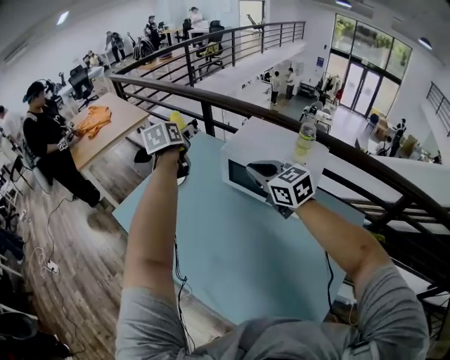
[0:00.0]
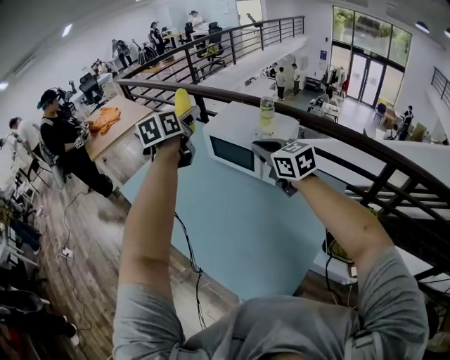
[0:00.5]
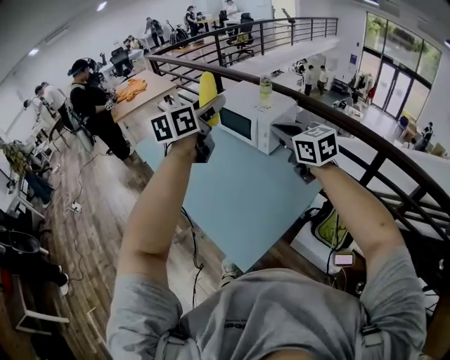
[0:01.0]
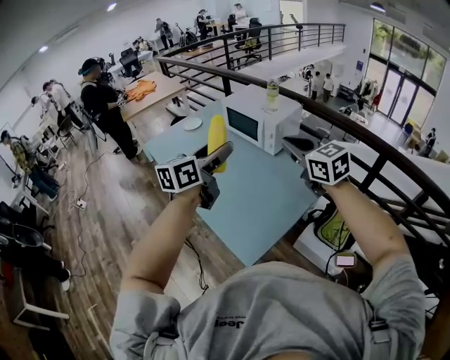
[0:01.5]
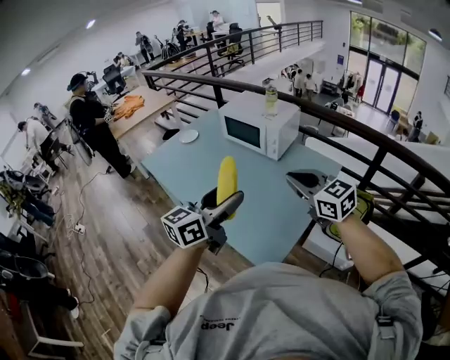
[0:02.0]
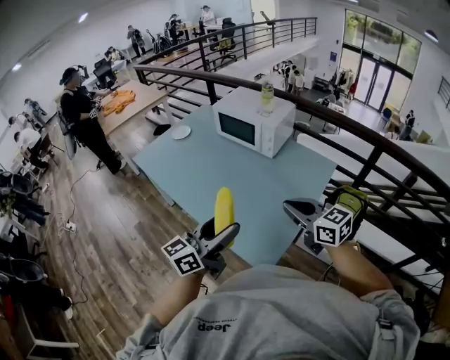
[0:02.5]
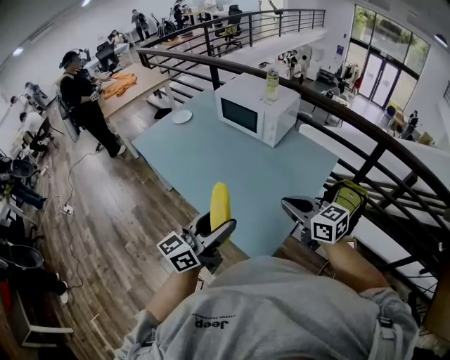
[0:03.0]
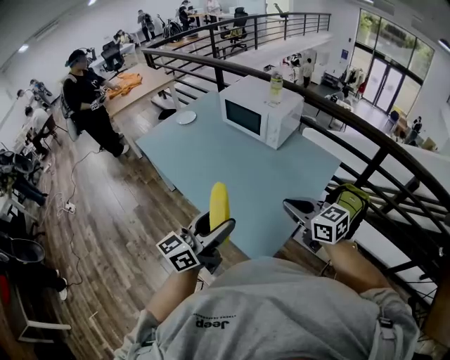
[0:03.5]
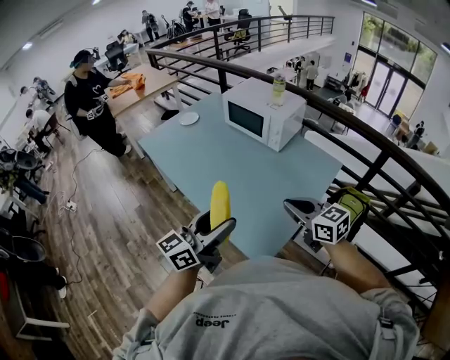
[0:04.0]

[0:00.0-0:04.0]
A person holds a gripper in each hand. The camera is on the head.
0:00.0 to 0:02.0: The pair of grippers is taken backward, about 60 cm. The left gripper rotates roughly 40 degrees.
0:02.0 to 0:04.0: The right gripper travels downward by some 10 cm. The left gripper shifts roughly 10 cm backward and downward.

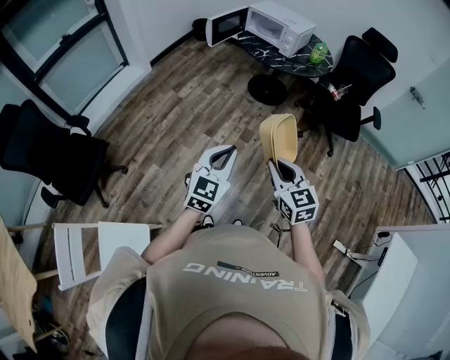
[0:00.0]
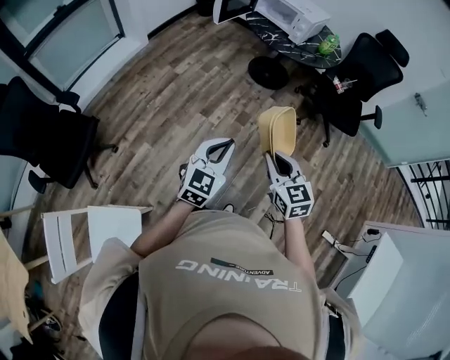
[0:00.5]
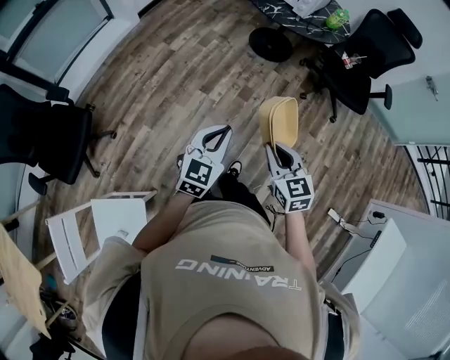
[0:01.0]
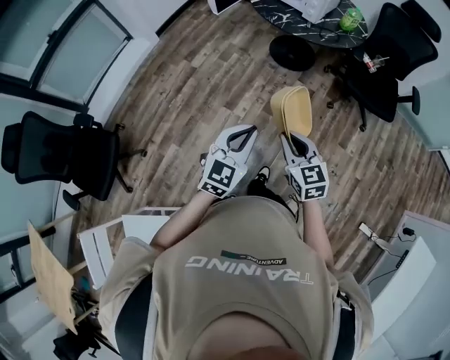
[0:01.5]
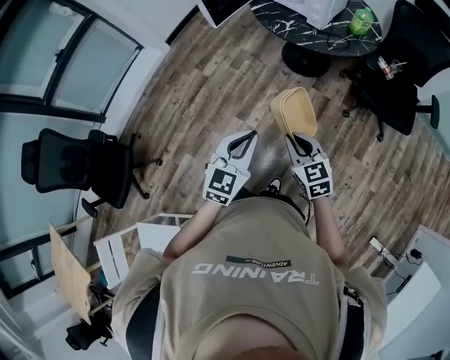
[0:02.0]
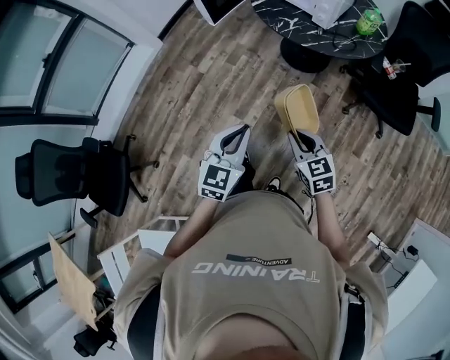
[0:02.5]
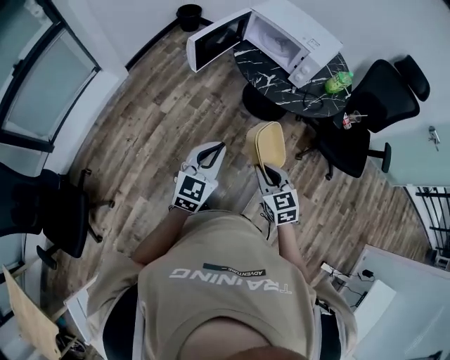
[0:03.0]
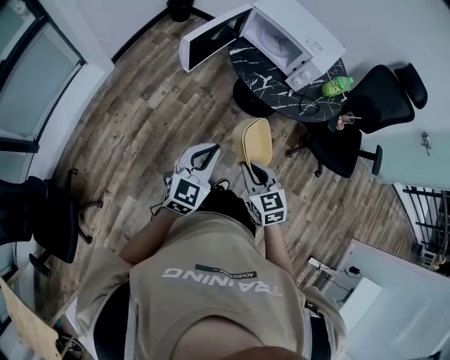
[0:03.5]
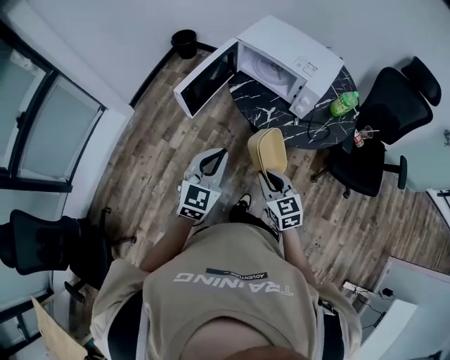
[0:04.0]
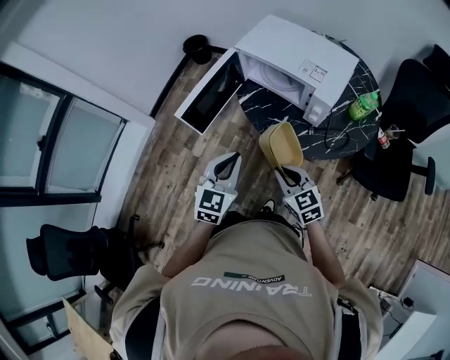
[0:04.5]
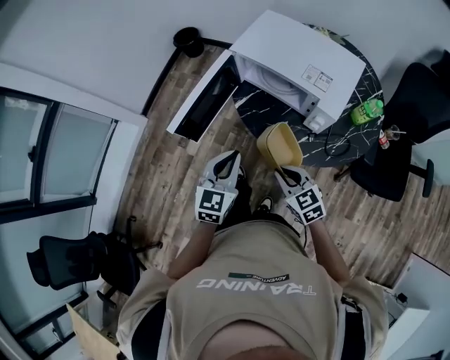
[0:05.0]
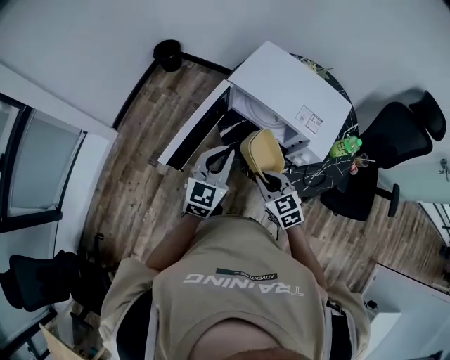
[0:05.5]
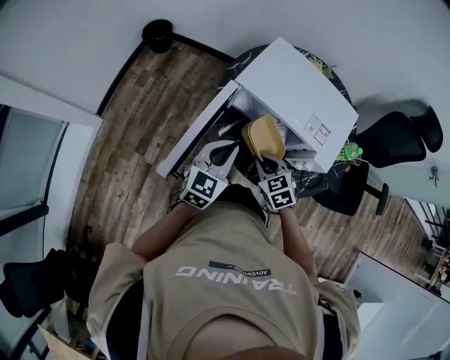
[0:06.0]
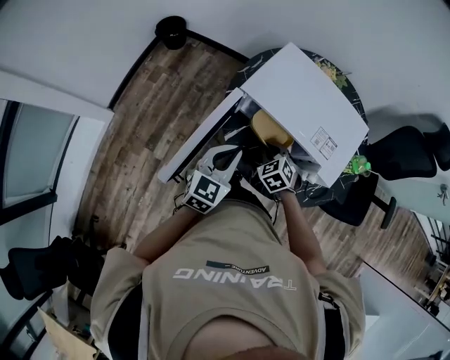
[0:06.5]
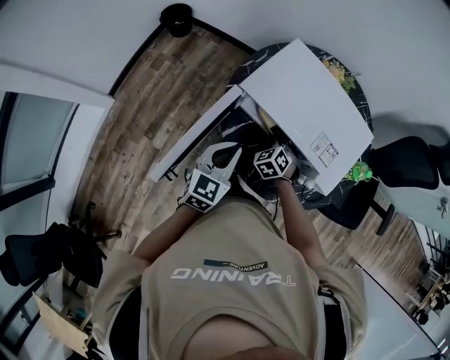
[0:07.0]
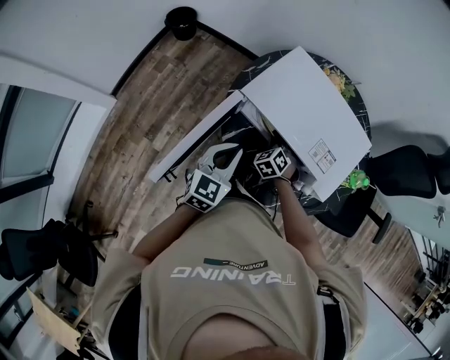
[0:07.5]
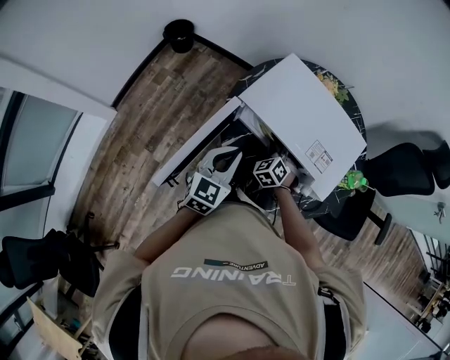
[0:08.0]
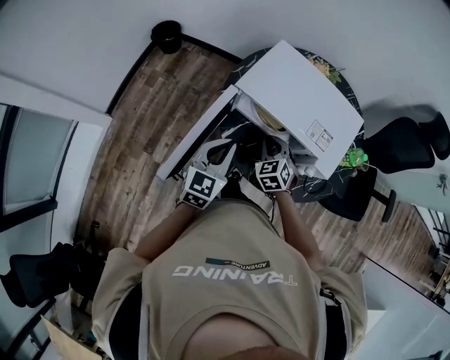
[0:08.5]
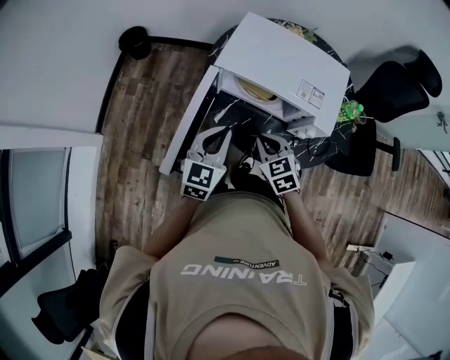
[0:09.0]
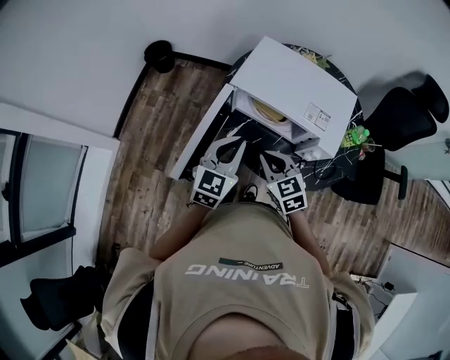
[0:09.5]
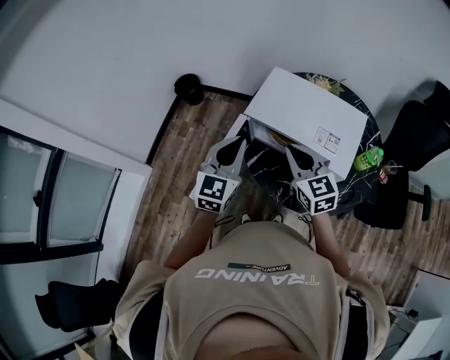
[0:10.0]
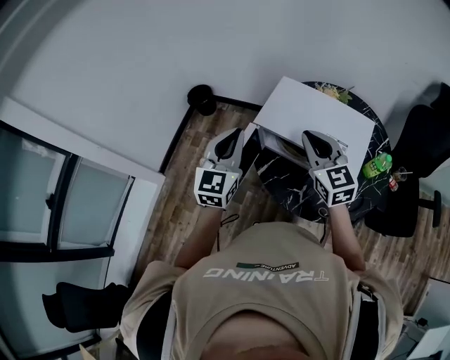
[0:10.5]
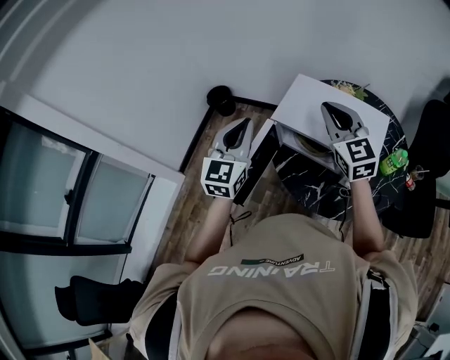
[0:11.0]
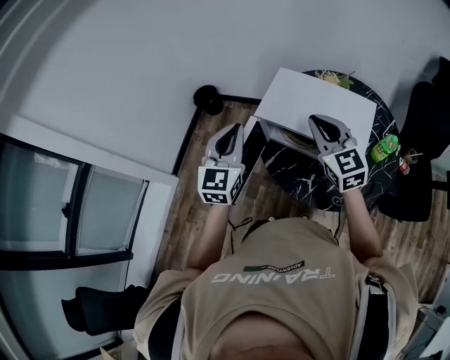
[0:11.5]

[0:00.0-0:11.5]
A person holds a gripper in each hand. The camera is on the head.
0:00.0 to 0:02.0: Both grippers move forward, approximately 30 cm.
0:02.0 to 0:04.0: The grippers both shift forward by about 35 cm.
0:04.0 to 0:06.0: The grippers both shift forward by approximately 35 cm. The right gripper rotates about 20 degrees.
0:06.0 to 0:07.5: The right gripper goes roughly 20 cm forward and downward, and changes its angle by about 30 degrees; the left gripper ends up roughly 5 cm from where it was.
0:07.5 to 0:09.5: The left gripper moves upward, about 5 cm; the right gripper moves upward and backward, about 25 cm, and changes its angle by roughly 40 degrees.
0:09.5 to 0:11.5: The right gripper travels upward, forward and to the right by roughly 20 cm, and rotates some 30 degrees, while the left gripper is displaced upward and forward by approximately 15 cm, and changes its angle by approximately 20 degrees.

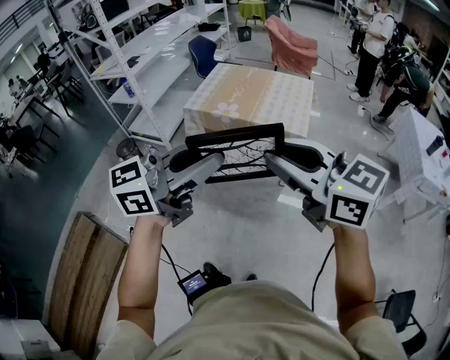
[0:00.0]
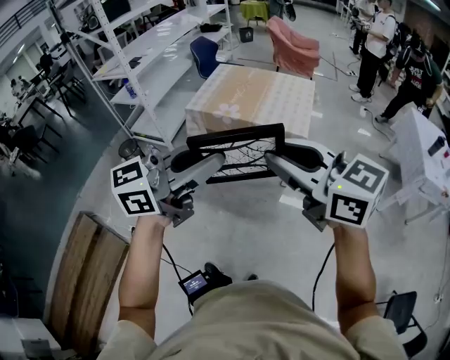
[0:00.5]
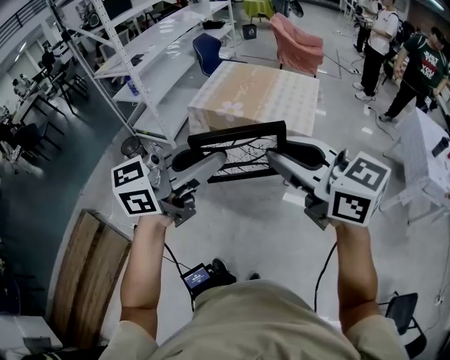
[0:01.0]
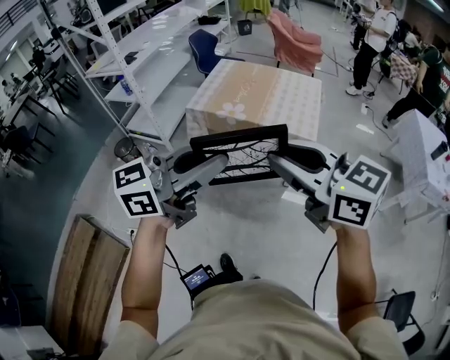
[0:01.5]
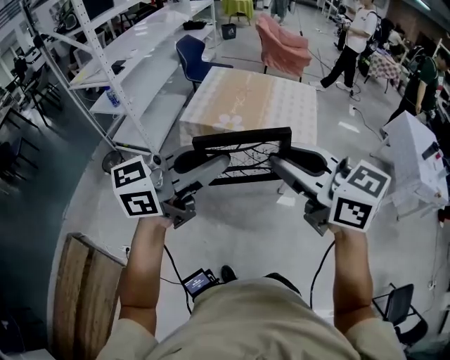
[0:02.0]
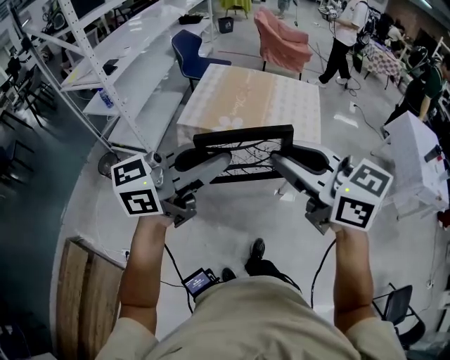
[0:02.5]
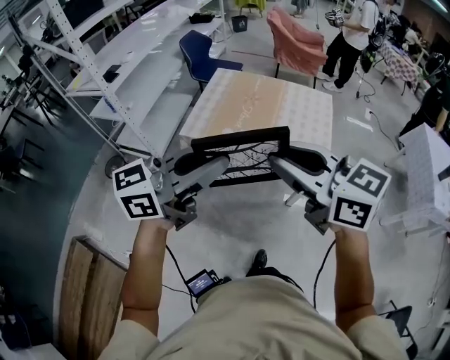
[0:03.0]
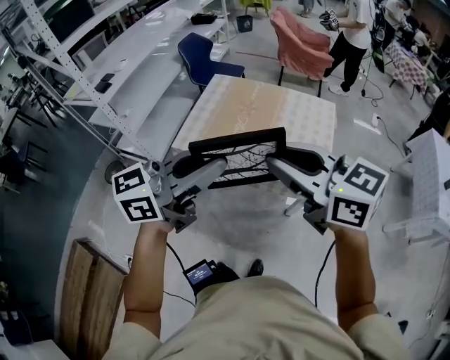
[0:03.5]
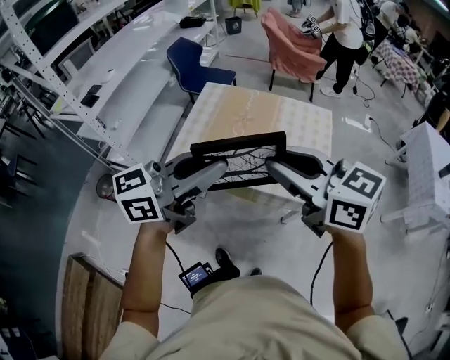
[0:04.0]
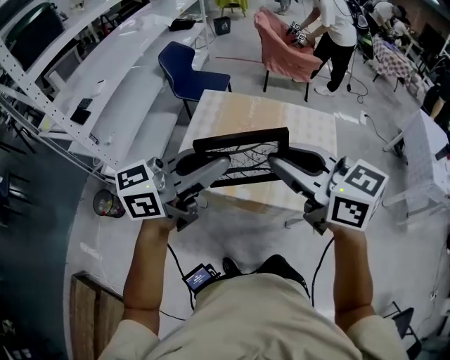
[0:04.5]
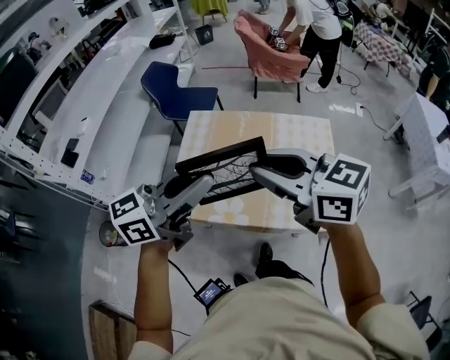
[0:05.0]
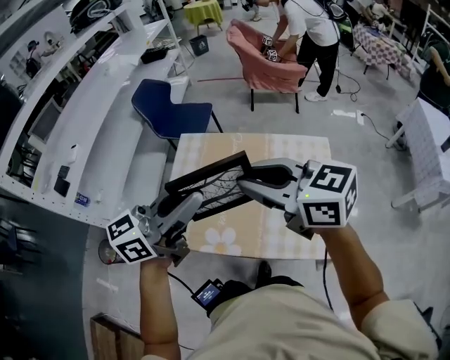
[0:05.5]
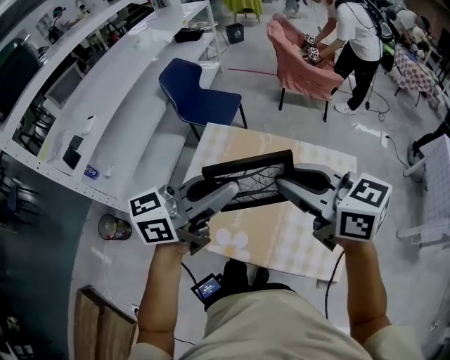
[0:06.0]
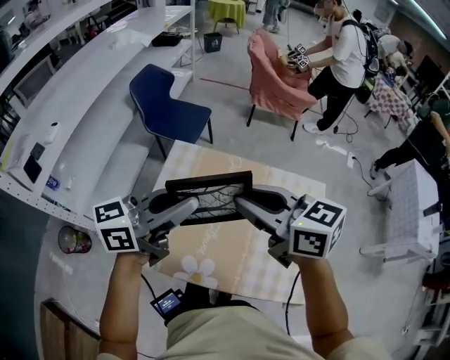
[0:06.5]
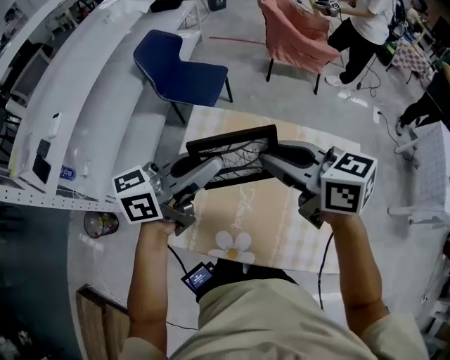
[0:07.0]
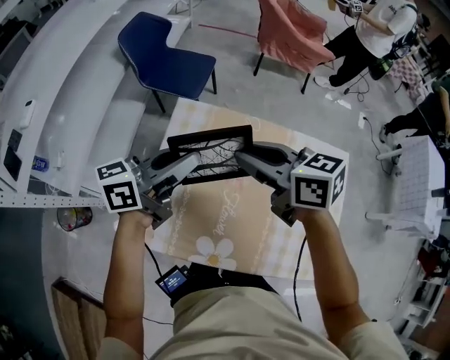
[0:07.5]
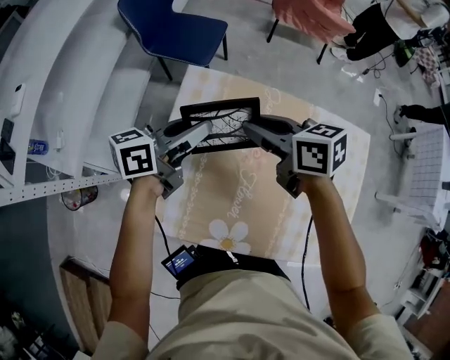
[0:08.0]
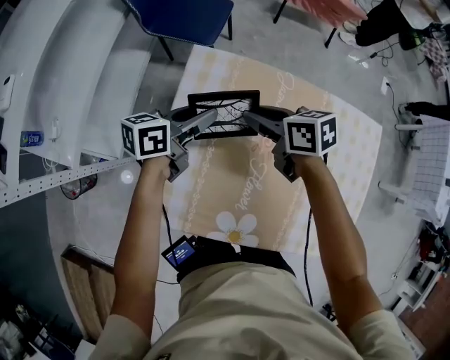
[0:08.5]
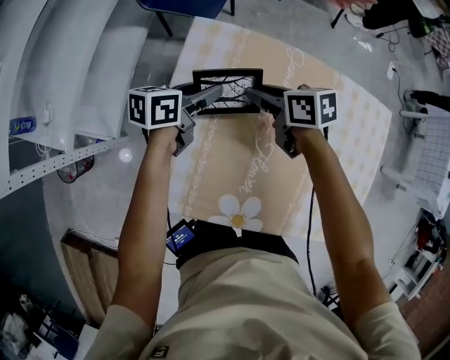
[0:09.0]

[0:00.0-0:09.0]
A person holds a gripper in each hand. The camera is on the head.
0:00.0 to 0:02.0: Both grippers move forward and to the left, about 25 cm.
0:02.0 to 0:04.5: The two grippers travel together, forward, approximately 40 cm.
0:04.5 to 0:07.0: The two grippers go some 40 cm forward and downward.
0:07.0 to 0:09.0: Both grippers move downward, some 35 cm. The right gripper rotates about 30 degrees; the left gripper turns by approximately 30 degrees, and opens.

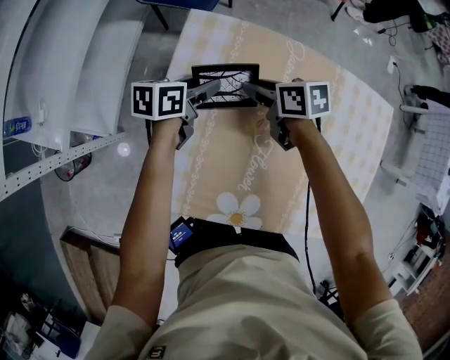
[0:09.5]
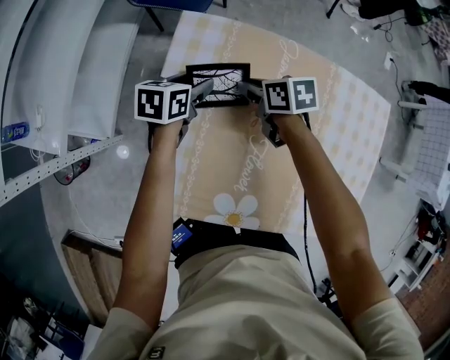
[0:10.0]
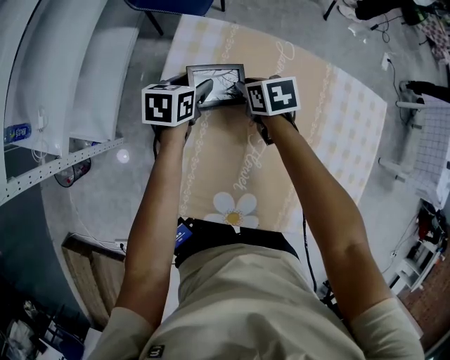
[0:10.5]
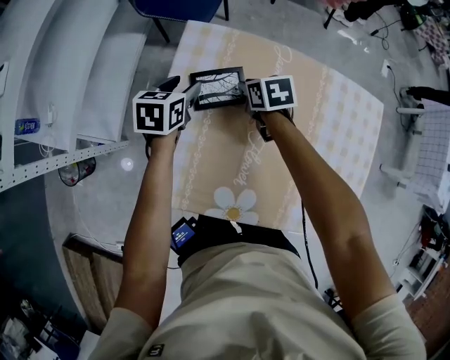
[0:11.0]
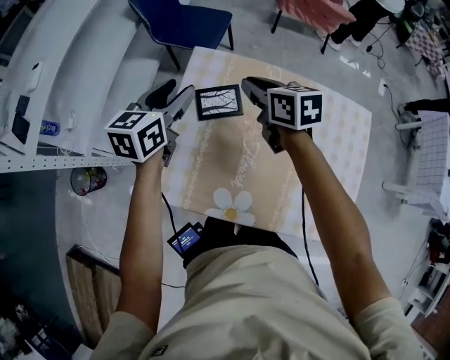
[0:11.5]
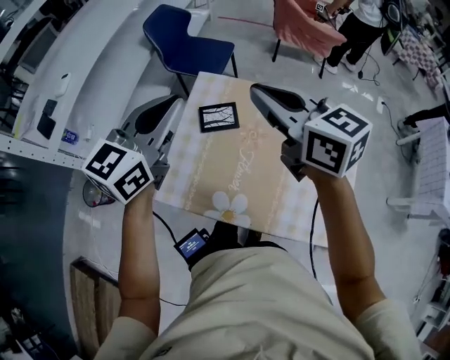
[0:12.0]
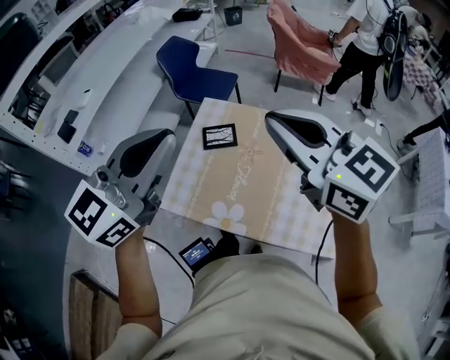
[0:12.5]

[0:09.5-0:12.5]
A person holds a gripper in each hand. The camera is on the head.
0:09.5 to 0:11.0: The left gripper shifts by approximately 5 cm, and turns by approximately 30 degrees.
0:11.0 to 0:12.5: The two grippers go about 60 cm upward and backward. The right gripper tips its fingers upward by about 50 degrees. The left gripper tips its fingers upward by roughly 40 degrees, and closes up.
